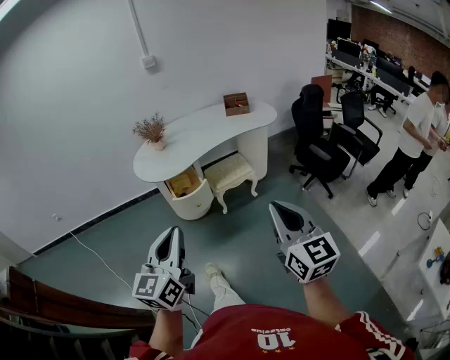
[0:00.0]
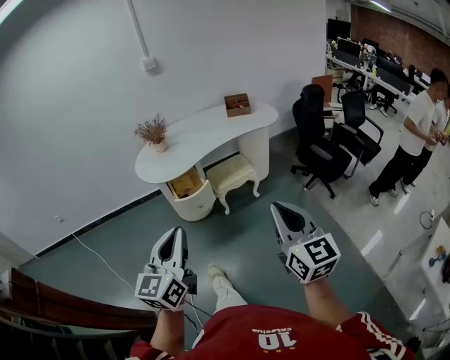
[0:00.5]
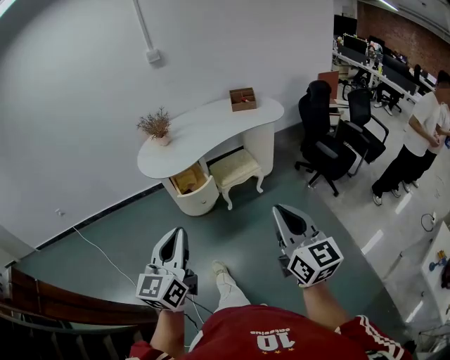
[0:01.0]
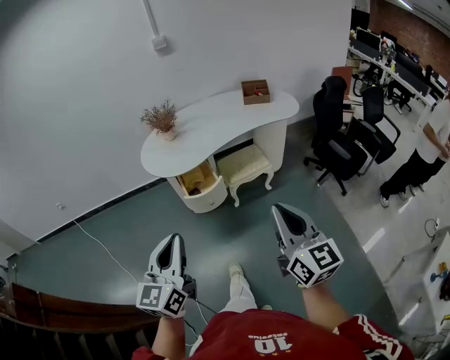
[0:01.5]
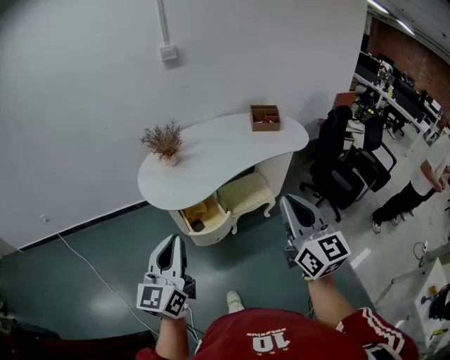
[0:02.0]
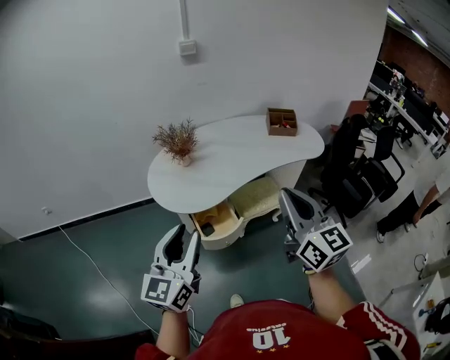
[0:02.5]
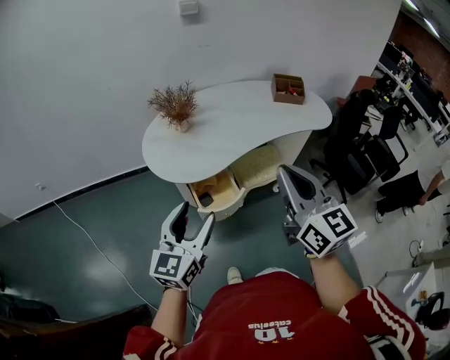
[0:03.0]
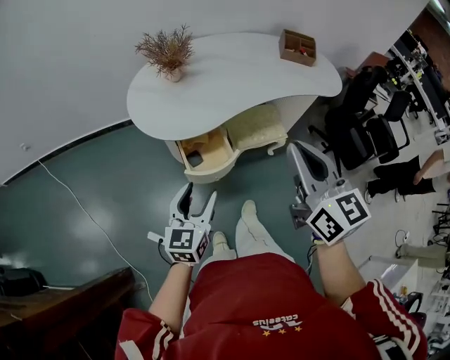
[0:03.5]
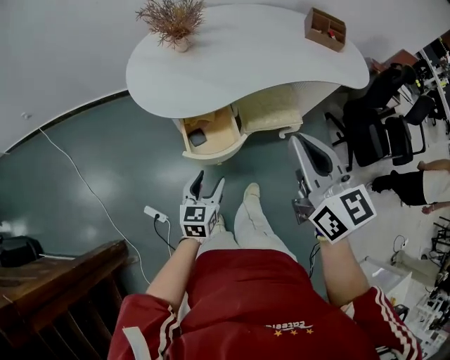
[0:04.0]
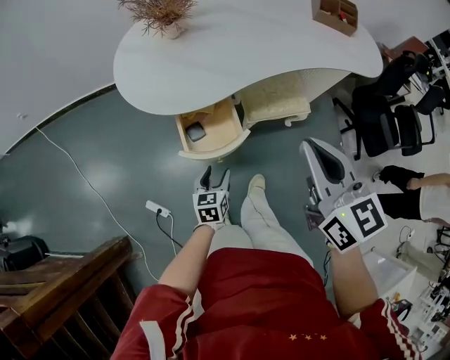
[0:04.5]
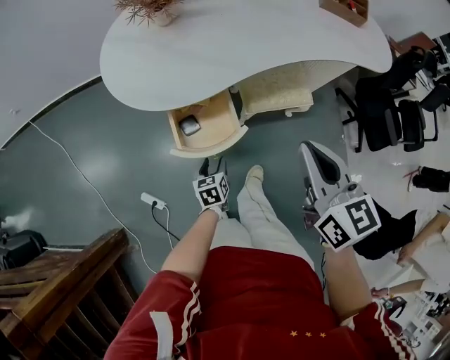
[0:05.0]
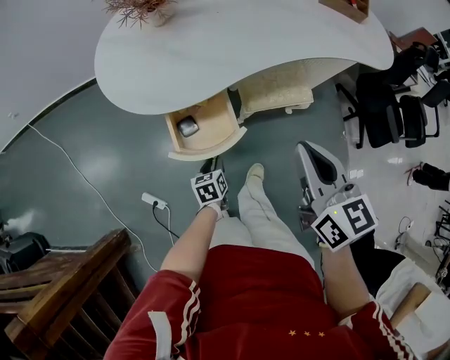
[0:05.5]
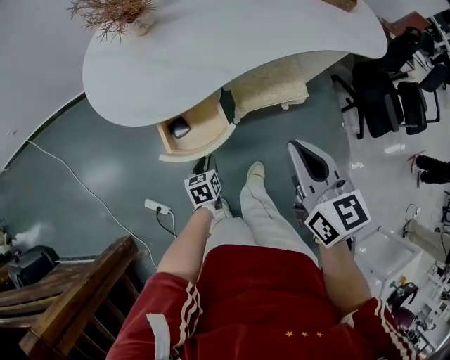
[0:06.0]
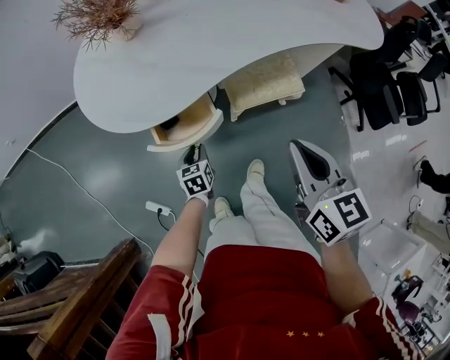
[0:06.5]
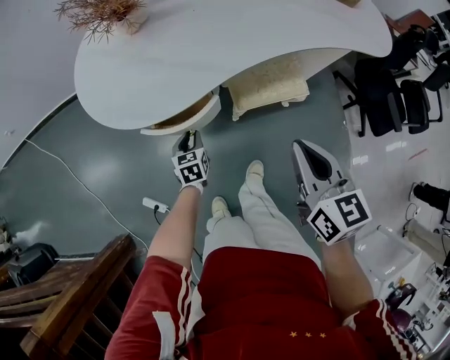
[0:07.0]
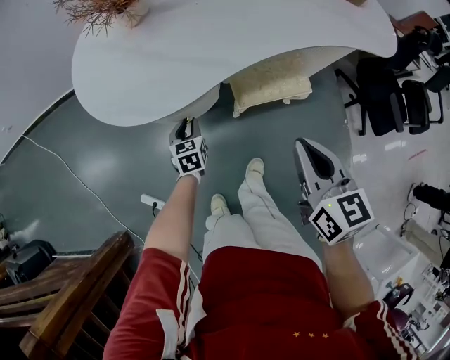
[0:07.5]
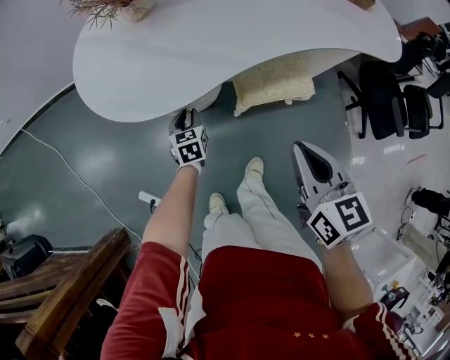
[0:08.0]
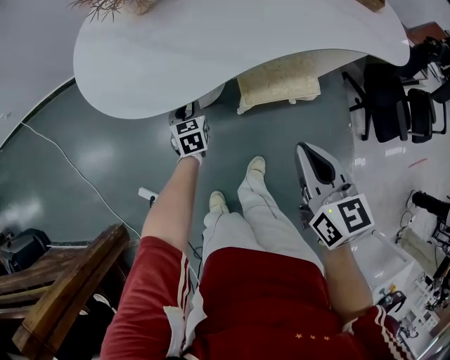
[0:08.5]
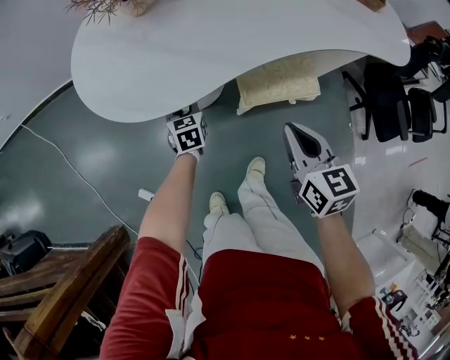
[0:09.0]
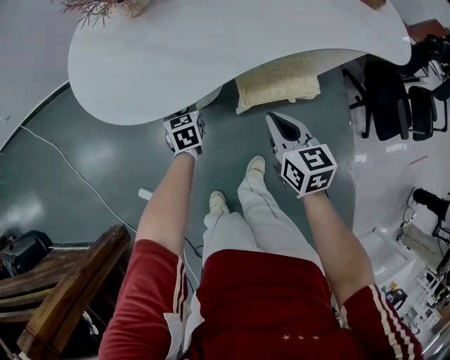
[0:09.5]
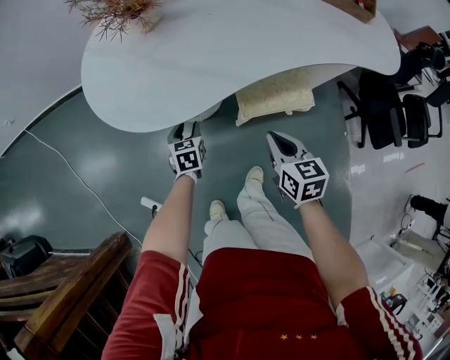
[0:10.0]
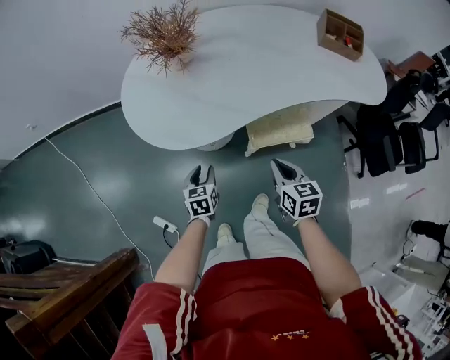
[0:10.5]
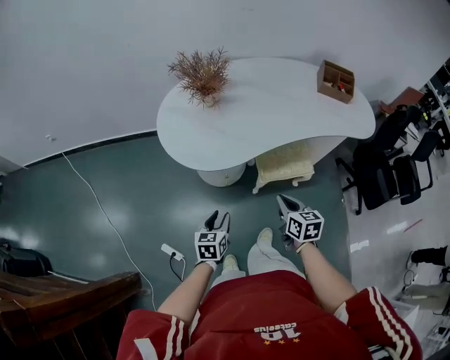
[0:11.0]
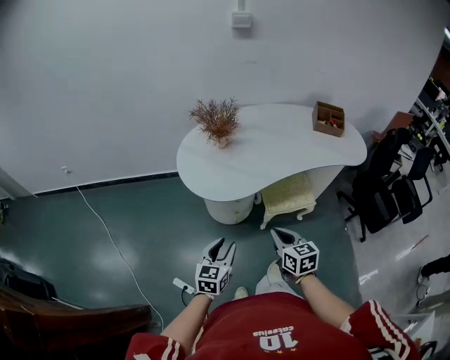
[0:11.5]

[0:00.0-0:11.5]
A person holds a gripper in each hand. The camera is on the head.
0.0 to 2.0 s: The left gripper travels forward and to the left by some 30 cm, while the right gripper moves forward, some 30 cm.
2.0 to 4.0 s: The right gripper heads forward and downward, covering roughly 25 cm, and rotates about 20 degrees. Meanwhile the left gripper is displaced downward by some 40 cm, tilts its fingers approximately 30 degrees downward, and opens.
4.0 to 6.0 s: Both grippers move downward, some 20 cm. The left gripper swivels some 30 degrees, and closes up.
6.0 to 7.5 s: The right gripper shifts by approximately 5 cm; the left gripper travels forward by about 15 cm.
7.5 to 9.5 s: The left gripper heads forward, covering approximately 5 cm; the right gripper heads downward and forward, covering approximately 15 cm.
9.5 to 11.5 s: The left gripper travels upward and backward by roughly 40 cm, and turns by some 30 degrees. The right gripper goes some 30 cm upward, backward and to the left.

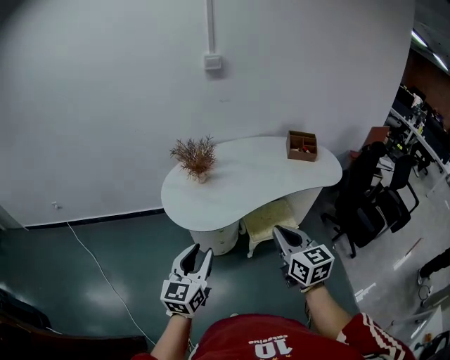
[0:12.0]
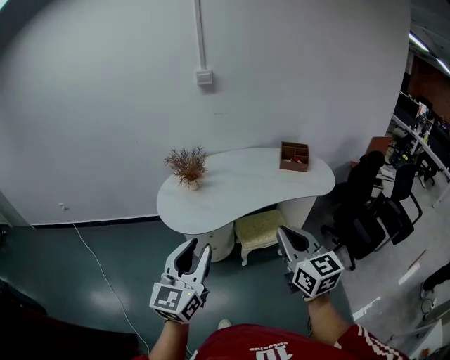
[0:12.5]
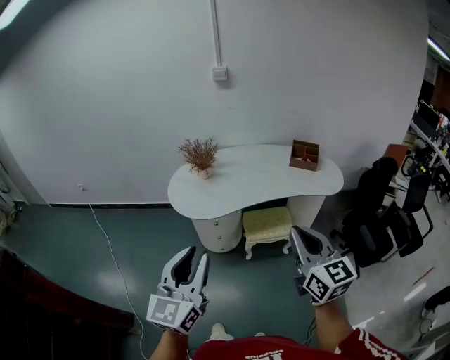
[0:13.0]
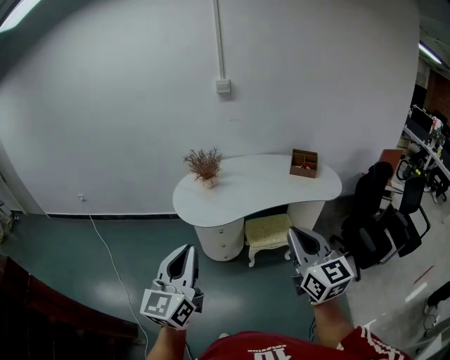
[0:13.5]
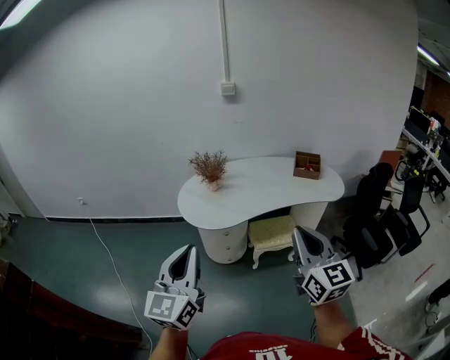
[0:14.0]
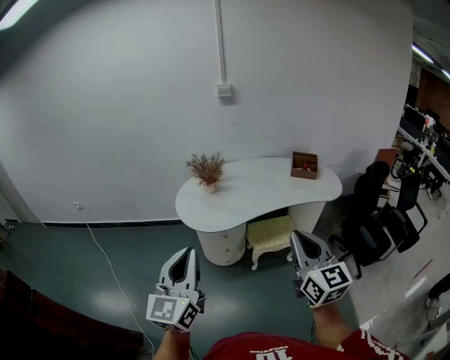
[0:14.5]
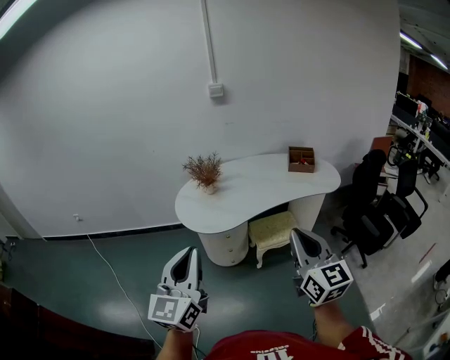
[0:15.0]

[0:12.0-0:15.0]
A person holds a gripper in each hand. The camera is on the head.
12.0 to 13.5 s: Both grippers travel together backward, upward and to the right, roughly 25 cm. The left gripper closes its fingers.
13.5 to 15.0 s: The two grippers go roughly 5 cm to the left.

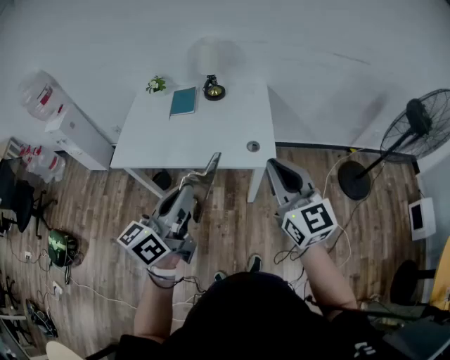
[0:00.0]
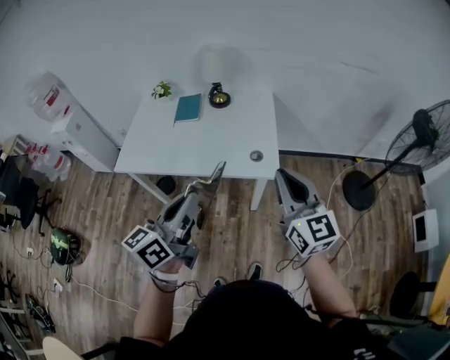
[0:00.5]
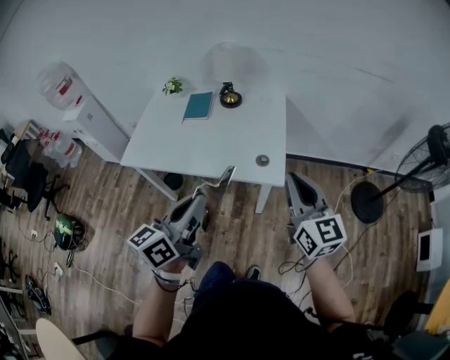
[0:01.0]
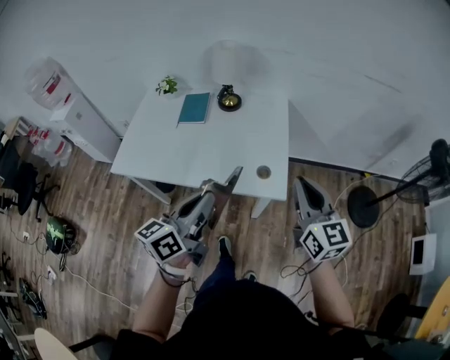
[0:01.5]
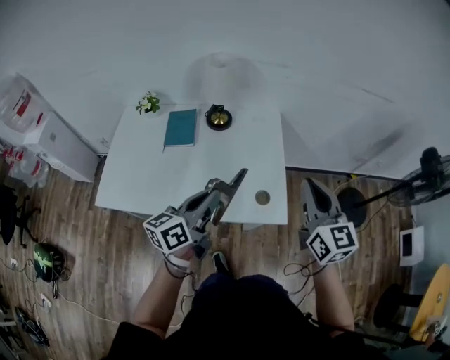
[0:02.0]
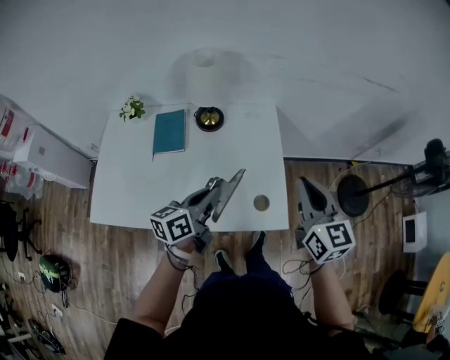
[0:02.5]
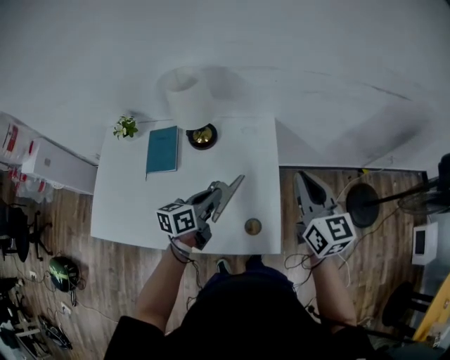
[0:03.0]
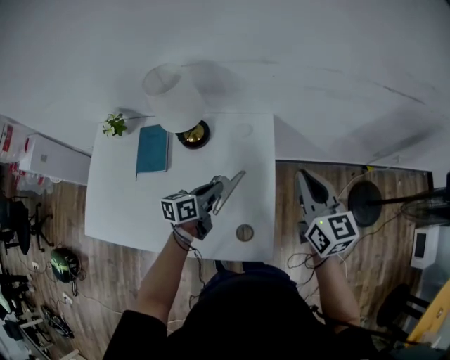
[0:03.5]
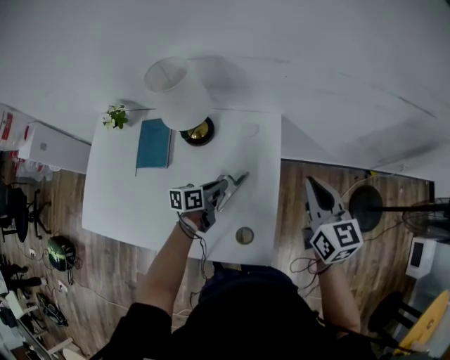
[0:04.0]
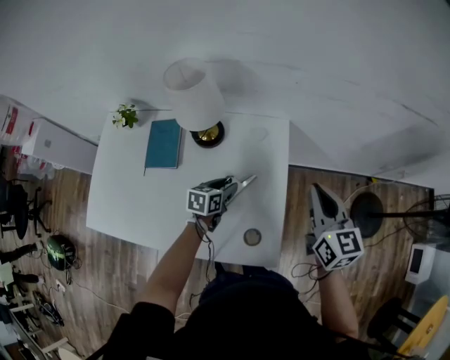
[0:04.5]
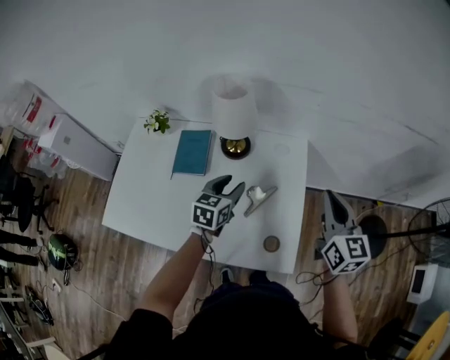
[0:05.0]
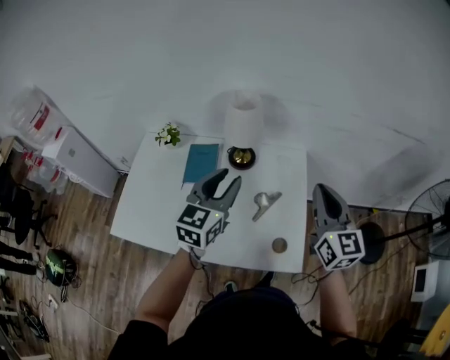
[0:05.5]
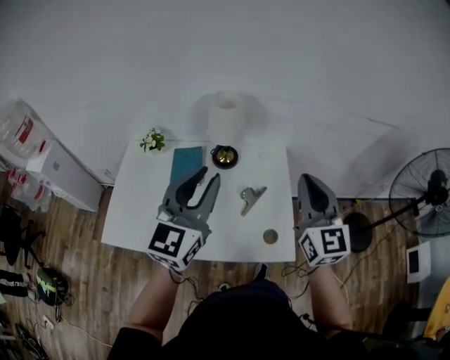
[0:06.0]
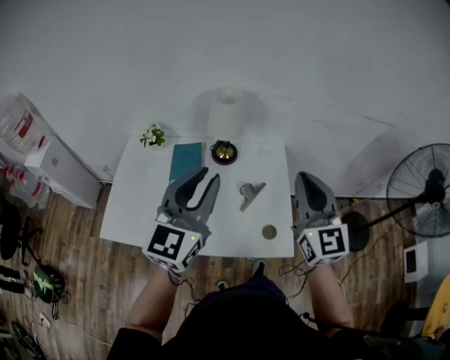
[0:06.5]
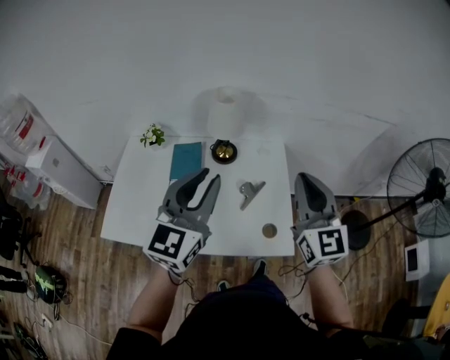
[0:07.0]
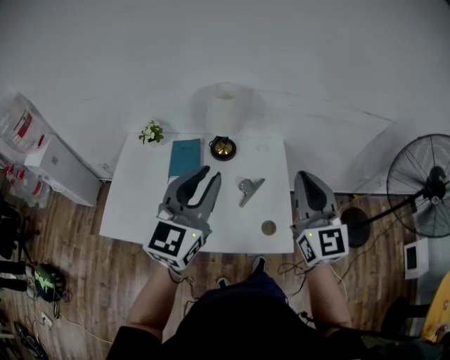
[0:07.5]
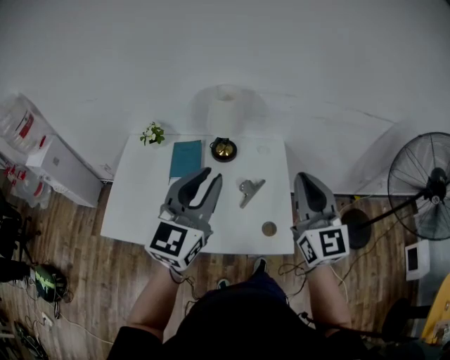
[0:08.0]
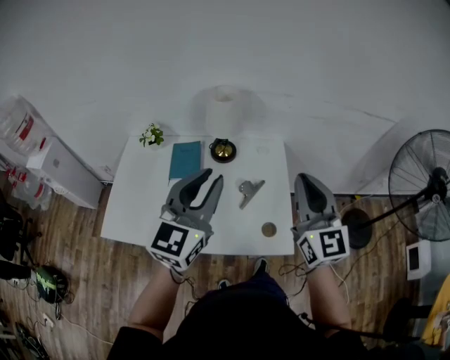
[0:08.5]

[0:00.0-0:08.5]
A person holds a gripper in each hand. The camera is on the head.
0.0 to 2.0 s: Both grippers travel together forward, some 30 cm.
2.0 to 4.0 s: The two grippers go approximately 35 cm forward and downward. The left gripper turns by about 30 degrees.
4.0 to 6.5 s: The left gripper is displaced upward and backward by some 50 cm, rolls clockwise, seen from behind, by some 60 degrees, and opens, then closes once more; the right gripper goes some 35 cm backward, upward and to the left, and changes its angle by about 30 degrees.
6.5 to 8.5 s: The grippers move only a little.

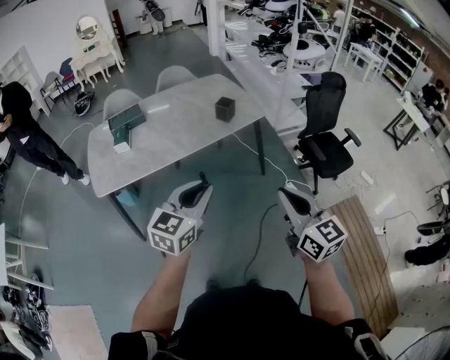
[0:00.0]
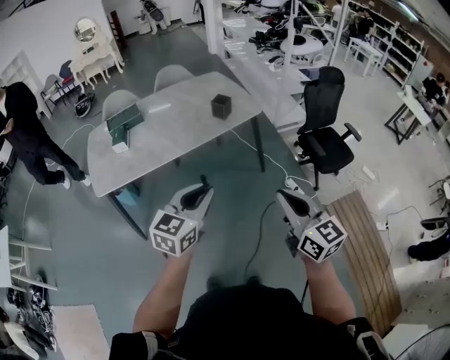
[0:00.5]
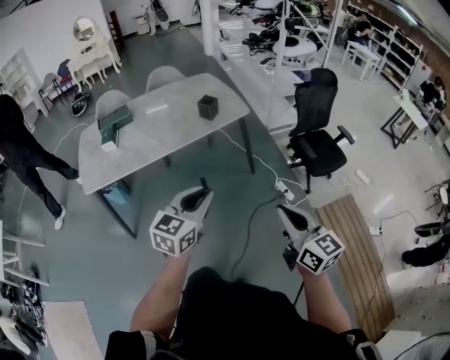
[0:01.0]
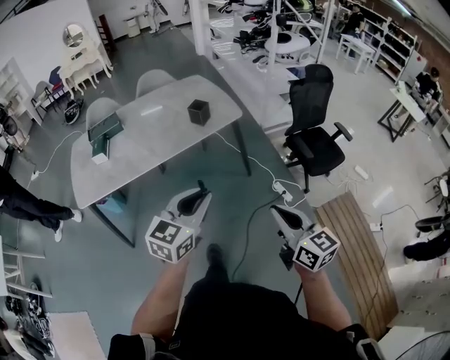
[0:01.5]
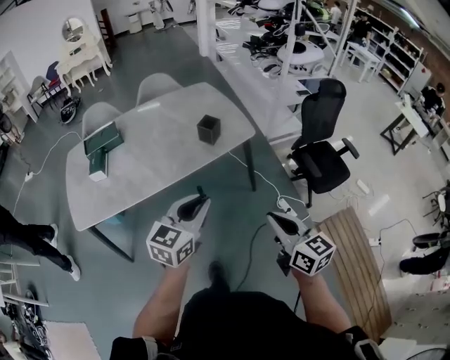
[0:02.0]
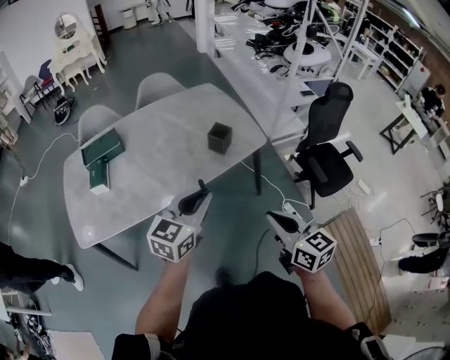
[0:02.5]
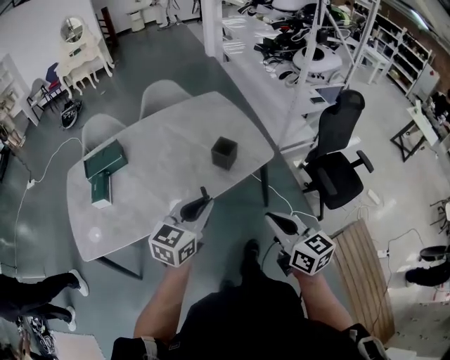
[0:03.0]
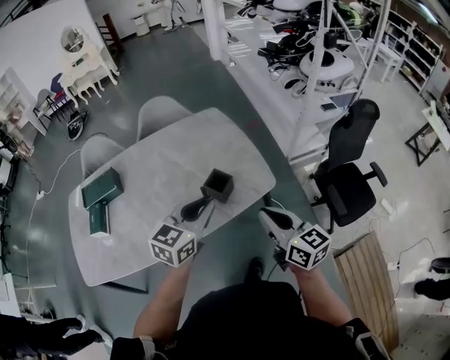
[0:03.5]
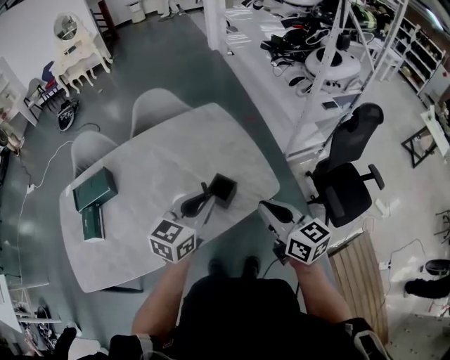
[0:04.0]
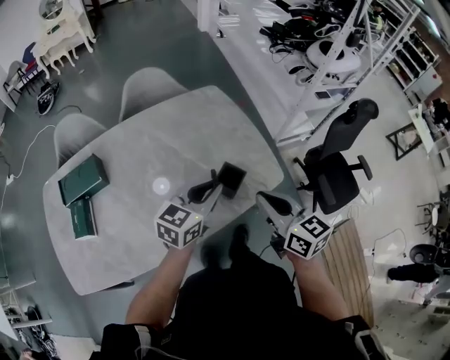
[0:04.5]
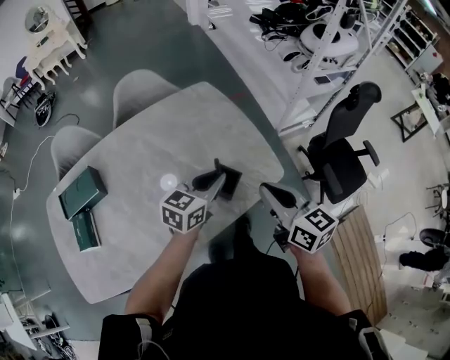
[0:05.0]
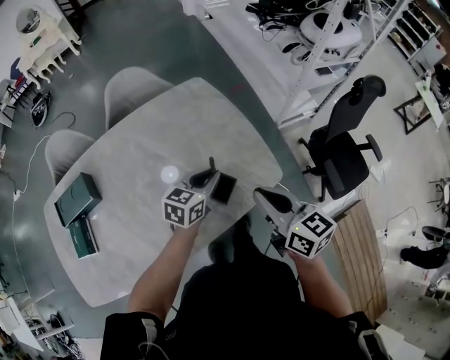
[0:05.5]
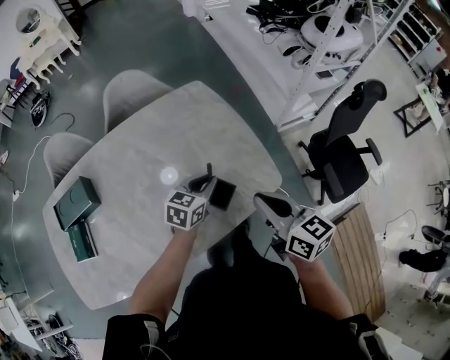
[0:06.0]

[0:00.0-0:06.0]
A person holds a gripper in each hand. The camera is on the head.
0.0 to 2.0 s: The left gripper travels forward by roughly 20 cm. Meanwhile the right gripper shifts approximately 20 cm forward and downward.
2.0 to 4.0 s: The two grippers travel together, forward, roughly 50 cm.
4.0 to 6.0 s: The left gripper heads downward and forward, covering some 25 cm. Meanwhile the right gripper shifts about 10 cm forward.
